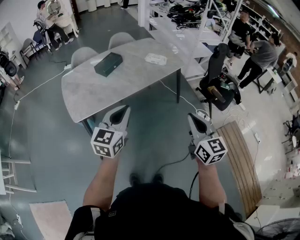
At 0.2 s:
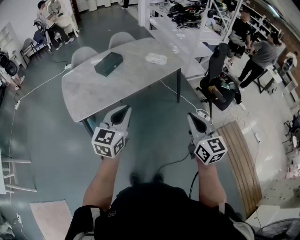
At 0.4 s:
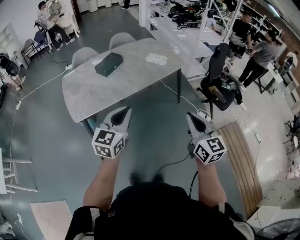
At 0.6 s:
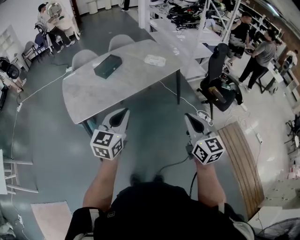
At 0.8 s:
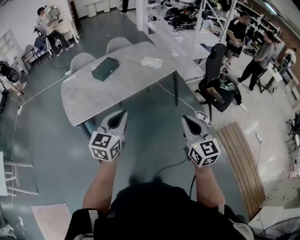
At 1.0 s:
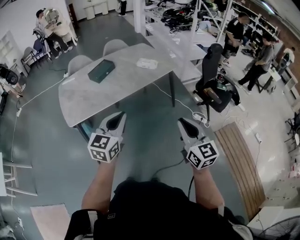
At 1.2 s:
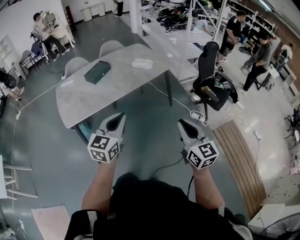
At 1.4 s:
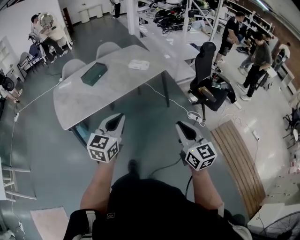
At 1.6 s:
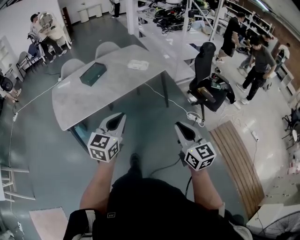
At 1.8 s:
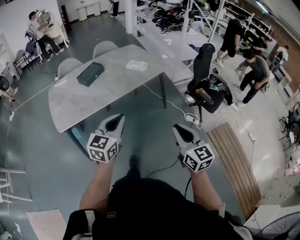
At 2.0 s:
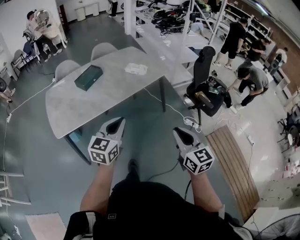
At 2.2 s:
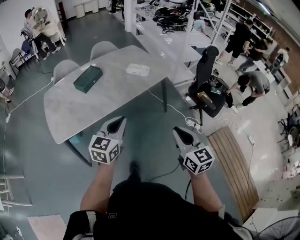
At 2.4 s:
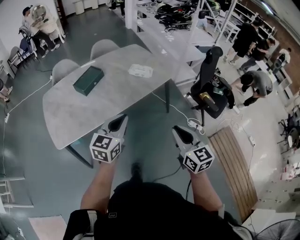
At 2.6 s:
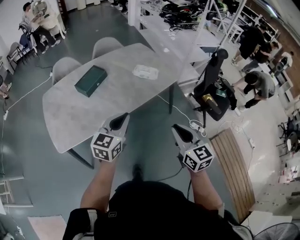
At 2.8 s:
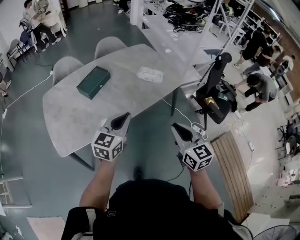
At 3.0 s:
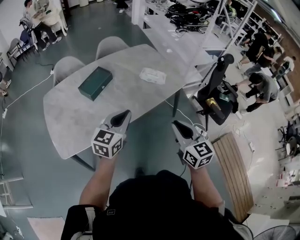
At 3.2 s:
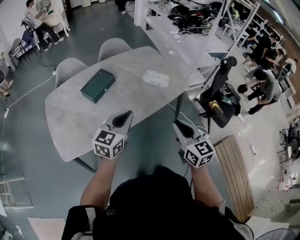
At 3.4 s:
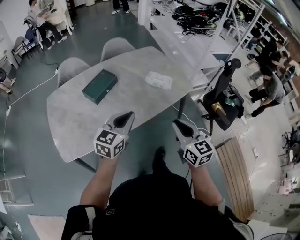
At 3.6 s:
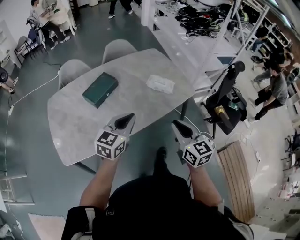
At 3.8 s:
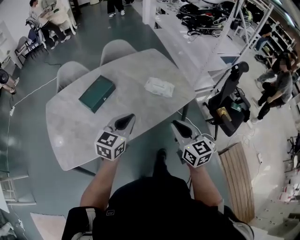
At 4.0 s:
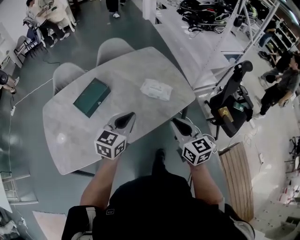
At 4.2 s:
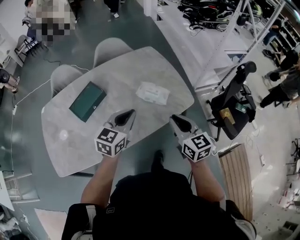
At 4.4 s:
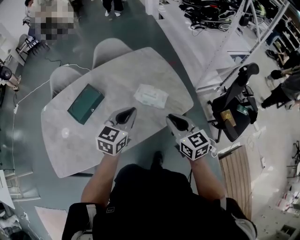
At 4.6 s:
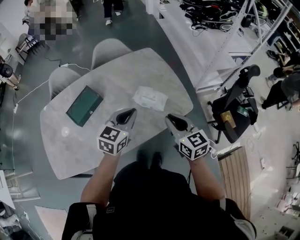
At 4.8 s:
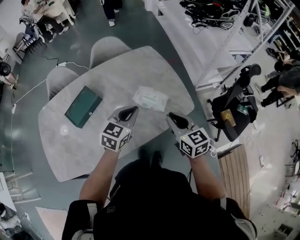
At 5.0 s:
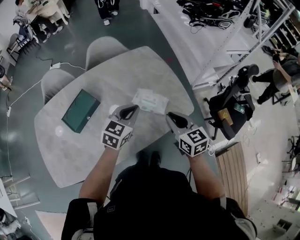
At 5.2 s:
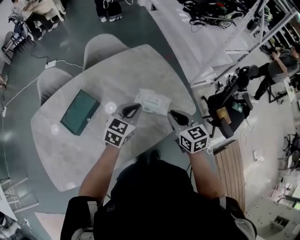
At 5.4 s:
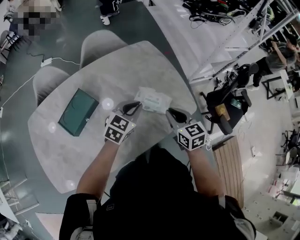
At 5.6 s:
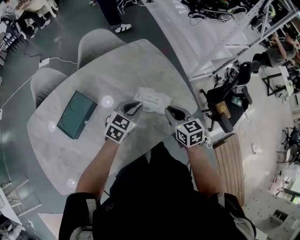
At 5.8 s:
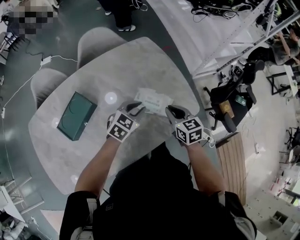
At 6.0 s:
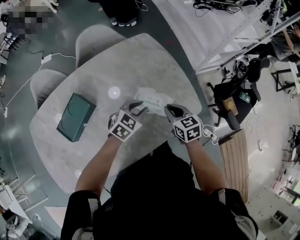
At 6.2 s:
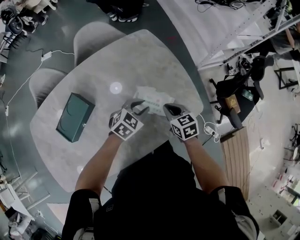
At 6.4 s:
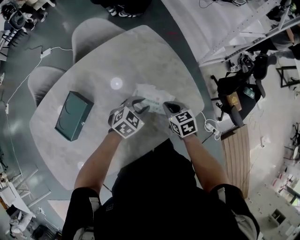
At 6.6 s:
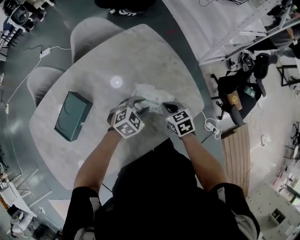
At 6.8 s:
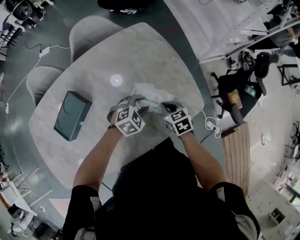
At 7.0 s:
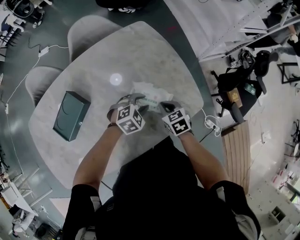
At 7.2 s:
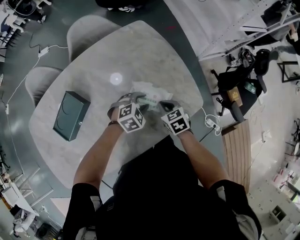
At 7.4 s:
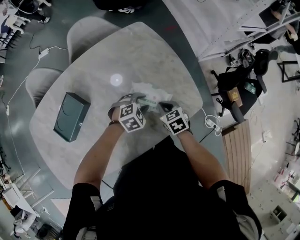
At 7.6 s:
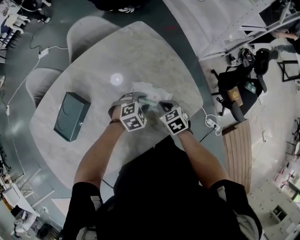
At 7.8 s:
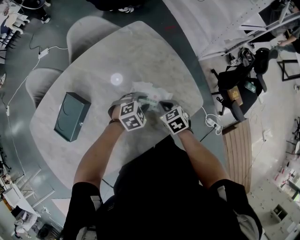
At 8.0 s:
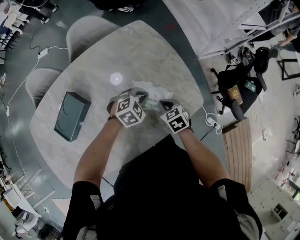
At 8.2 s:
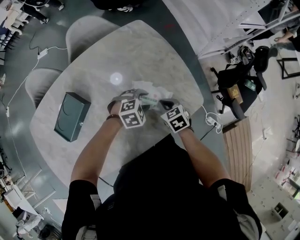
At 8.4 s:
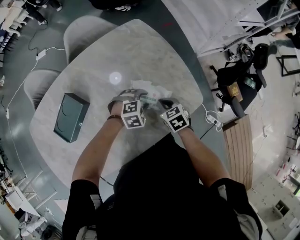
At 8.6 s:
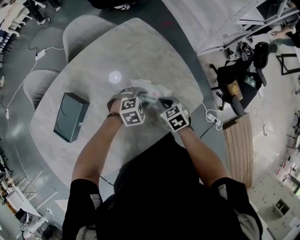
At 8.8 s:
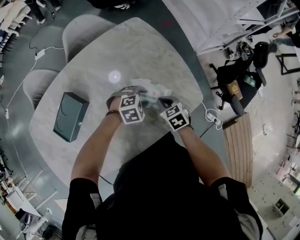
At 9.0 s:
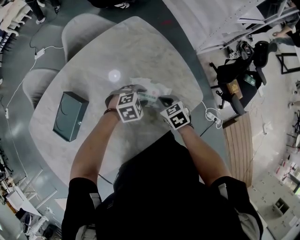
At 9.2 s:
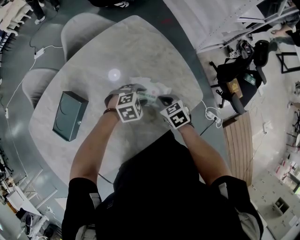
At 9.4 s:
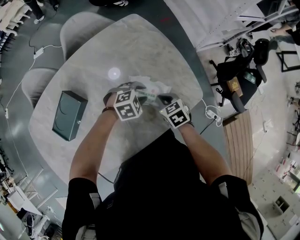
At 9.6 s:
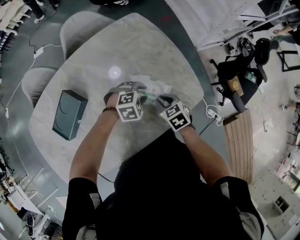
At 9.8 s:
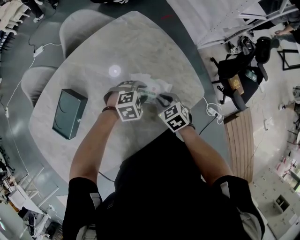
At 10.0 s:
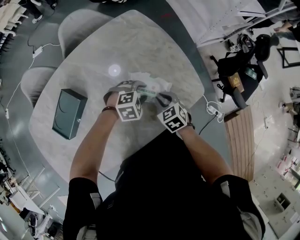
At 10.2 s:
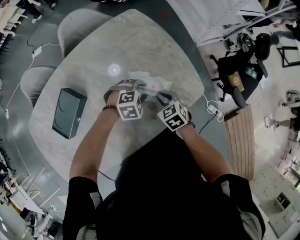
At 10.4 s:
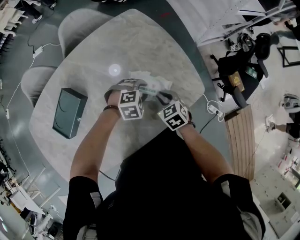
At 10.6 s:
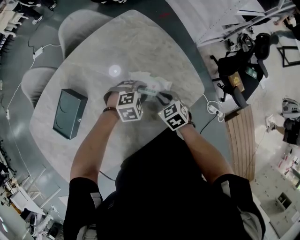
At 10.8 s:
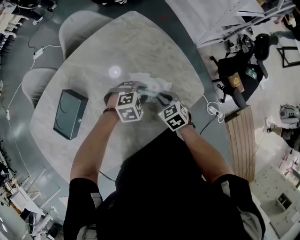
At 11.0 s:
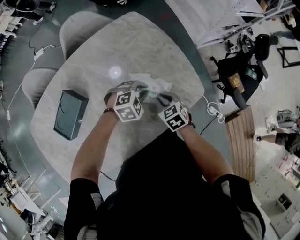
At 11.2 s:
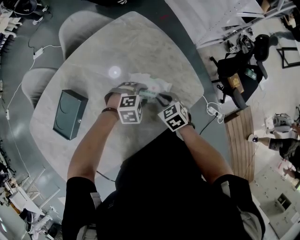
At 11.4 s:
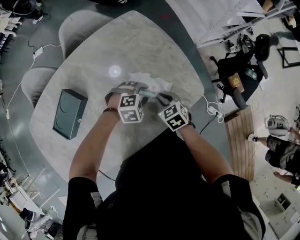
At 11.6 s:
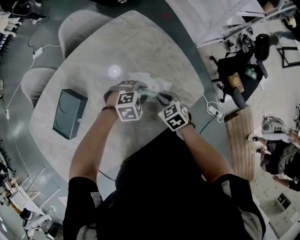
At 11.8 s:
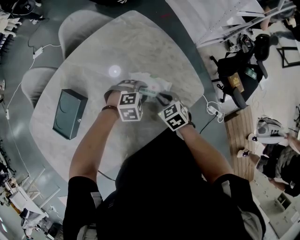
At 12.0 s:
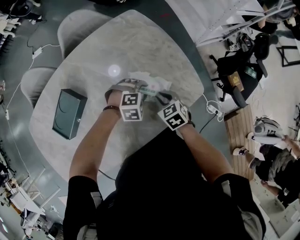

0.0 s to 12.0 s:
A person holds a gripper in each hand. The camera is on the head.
0.0 to 1.6 s: Both grippers move to the right, roughly 15 cm.
1.6 to 3.0 s: The two grippers go roughly 40 cm forward and to the left.
3.0 to 4.4 s: The right gripper travels forward by roughly 35 cm, while the left gripper goes approximately 35 cm forward and to the right.
4.4 to 6.0 s: The two grippers go about 25 cm forward and downward. The left gripper turns by roughly 30 degrees, and opens up, while the right gripper rotates approximately 20 degrees.
6.0 to 7.6 s: The two grippers go approximately 10 cm downward. The left gripper swivels approximately 30 degrees.
7.6 to 9.0 s: The left gripper closes, then reopens.
9.0 to 10.4 s: The grippers stay close to where they were, moving slightly.
10.4 to 12.0 s: The left gripper closes and opens again.

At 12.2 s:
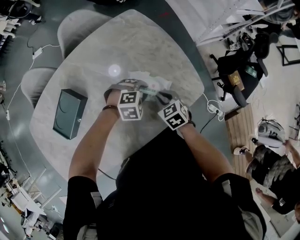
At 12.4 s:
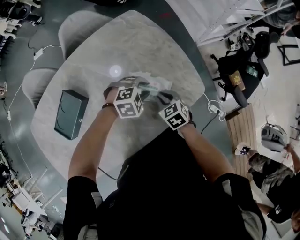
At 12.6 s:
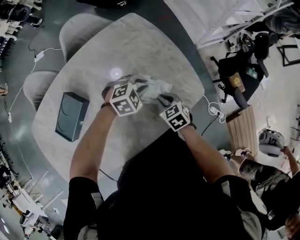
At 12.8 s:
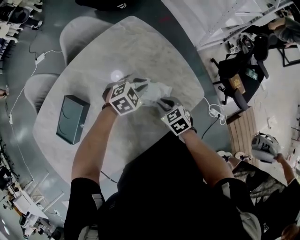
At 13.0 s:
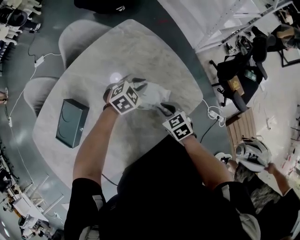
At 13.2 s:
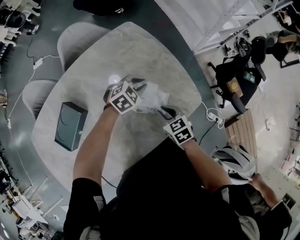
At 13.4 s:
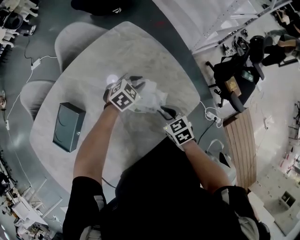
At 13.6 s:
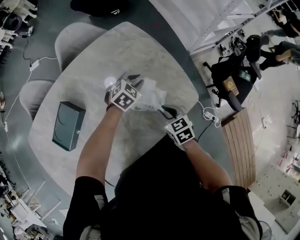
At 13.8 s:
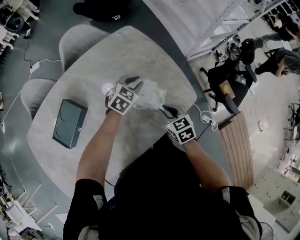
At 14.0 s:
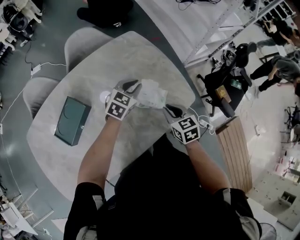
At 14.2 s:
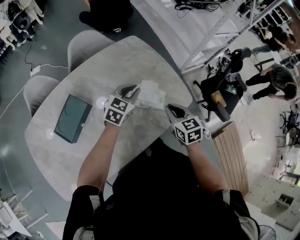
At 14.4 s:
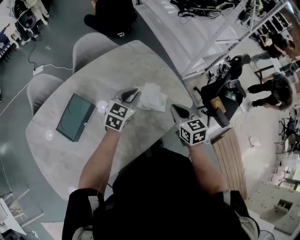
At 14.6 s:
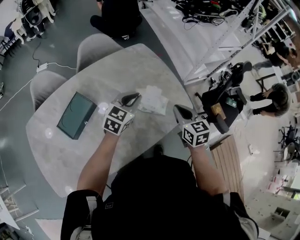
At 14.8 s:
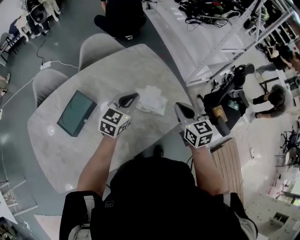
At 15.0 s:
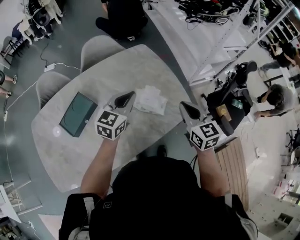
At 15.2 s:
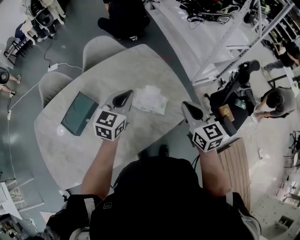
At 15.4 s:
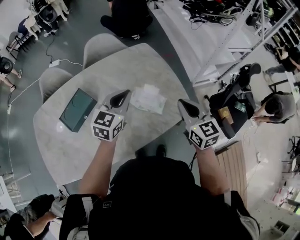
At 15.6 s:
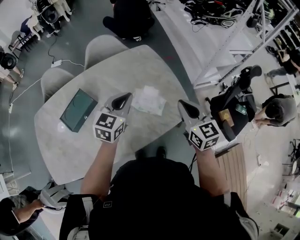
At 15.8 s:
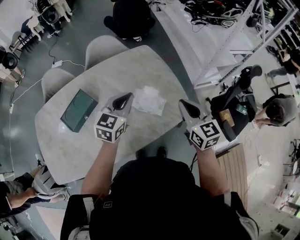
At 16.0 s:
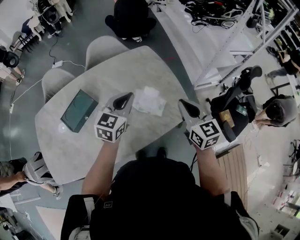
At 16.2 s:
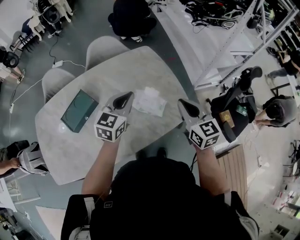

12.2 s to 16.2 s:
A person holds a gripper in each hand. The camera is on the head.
12.2 to 13.6 s: The left gripper travels forward by about 10 cm, and rotates roughly 40 degrees.
13.6 to 14.8 s: The left gripper goes about 25 cm upward and backward, points its fingers about 30 degrees further upward, and closes up; the right gripper goes approximately 20 cm upward, and swivels roughly 20 degrees.
14.8 to 16.2 s: The left gripper shifts by about 5 cm. The right gripper moves upward, roughly 5 cm.

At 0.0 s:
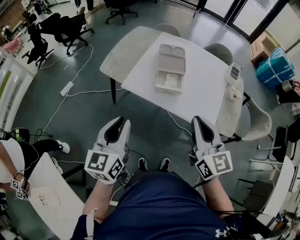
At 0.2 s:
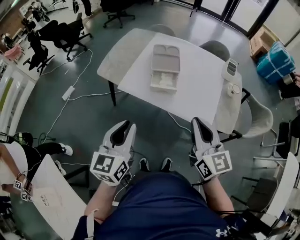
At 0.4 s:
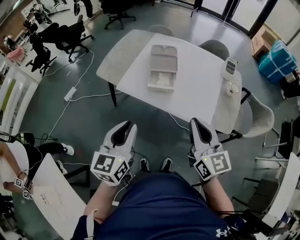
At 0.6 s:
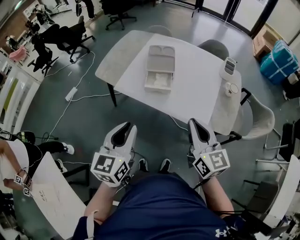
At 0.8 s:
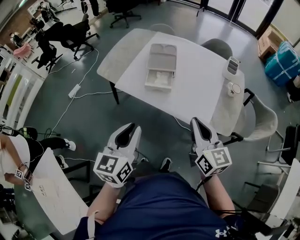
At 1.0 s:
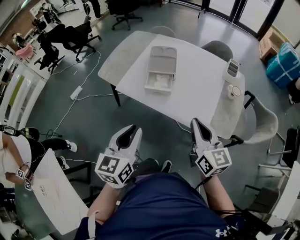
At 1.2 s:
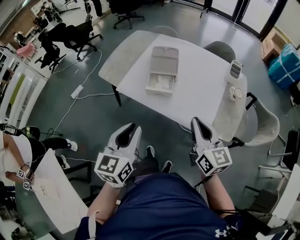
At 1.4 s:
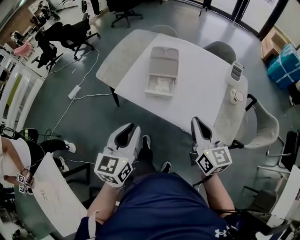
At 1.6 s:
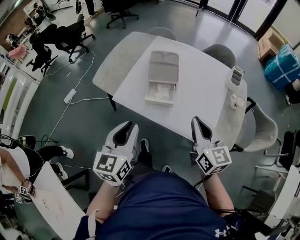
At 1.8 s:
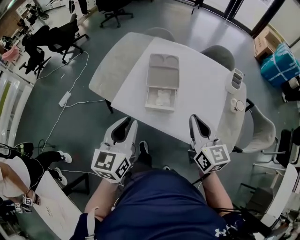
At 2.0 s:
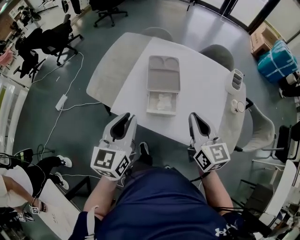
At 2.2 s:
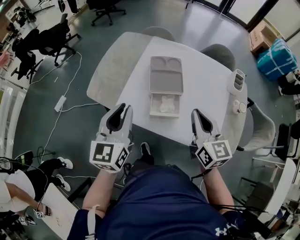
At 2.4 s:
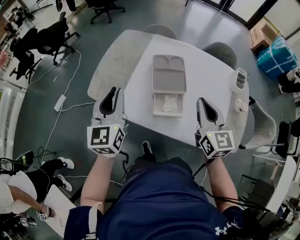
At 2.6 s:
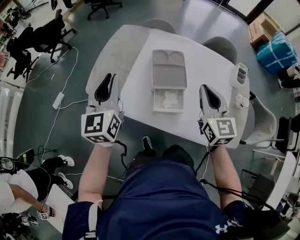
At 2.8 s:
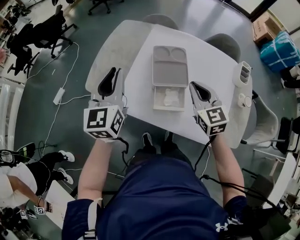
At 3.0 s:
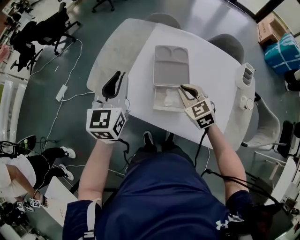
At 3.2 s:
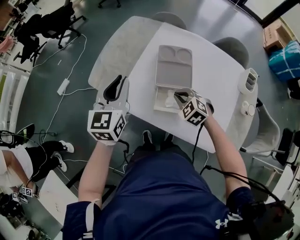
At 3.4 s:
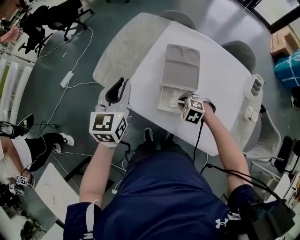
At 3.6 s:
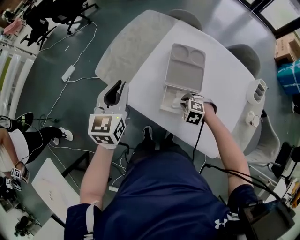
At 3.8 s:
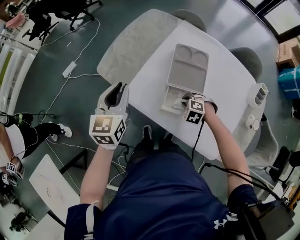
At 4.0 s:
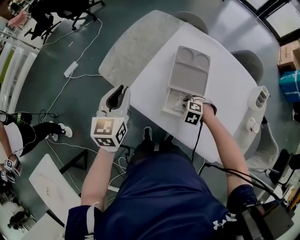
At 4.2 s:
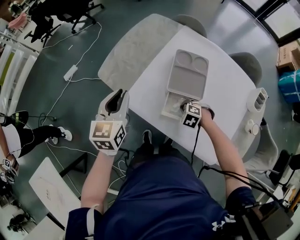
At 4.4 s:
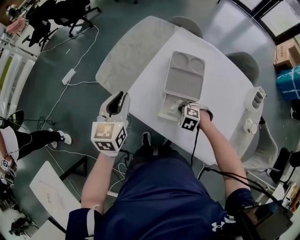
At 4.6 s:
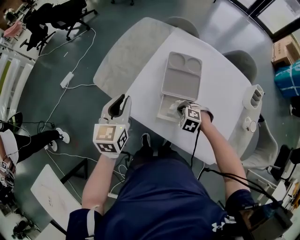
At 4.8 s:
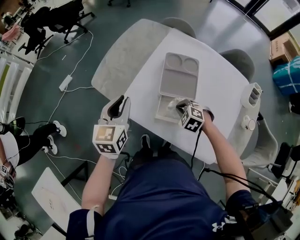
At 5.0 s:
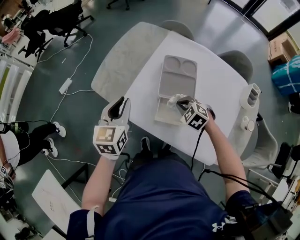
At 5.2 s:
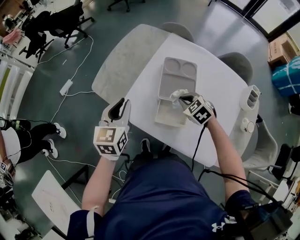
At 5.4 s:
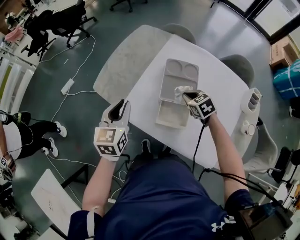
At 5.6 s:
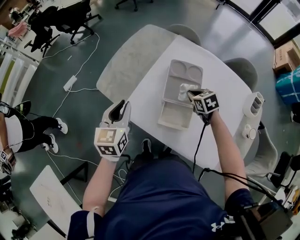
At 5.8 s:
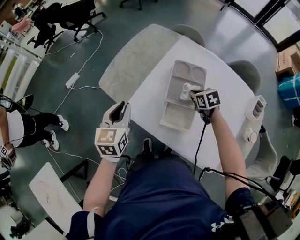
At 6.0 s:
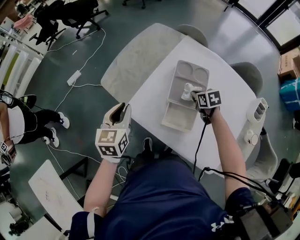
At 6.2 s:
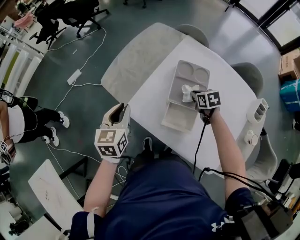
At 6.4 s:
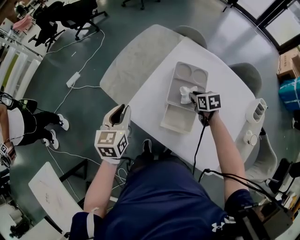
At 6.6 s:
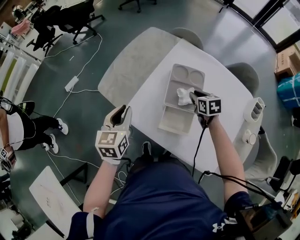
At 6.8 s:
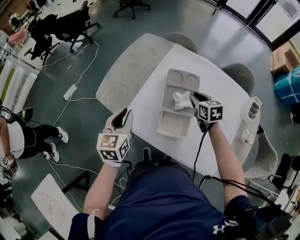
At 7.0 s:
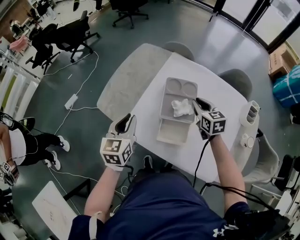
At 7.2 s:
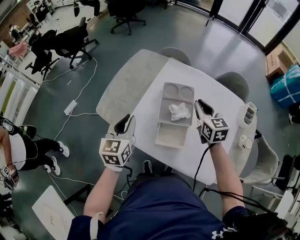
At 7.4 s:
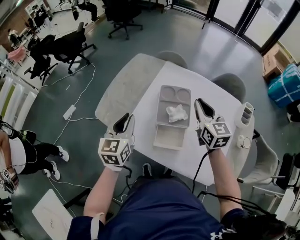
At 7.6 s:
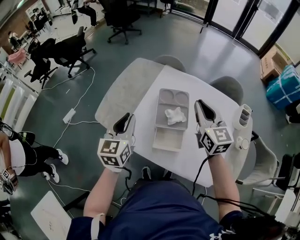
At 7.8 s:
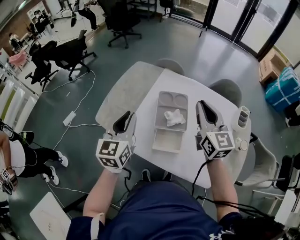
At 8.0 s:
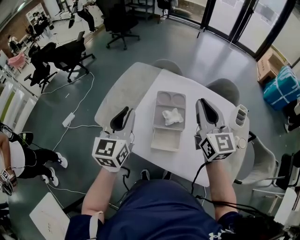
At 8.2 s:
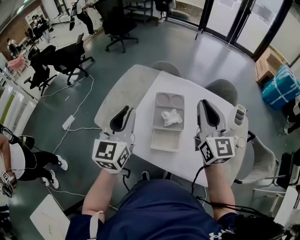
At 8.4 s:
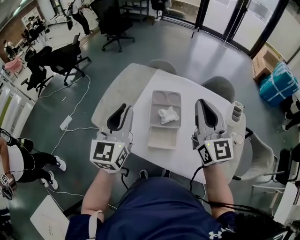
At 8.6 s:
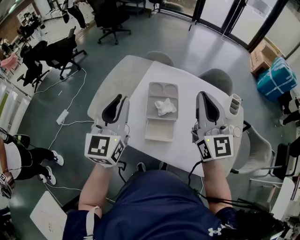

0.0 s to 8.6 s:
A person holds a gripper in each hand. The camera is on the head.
0.0 to 1.4 s: The left gripper is displaced to the right by approximately 15 cm, while the right gripper goes about 15 cm to the right, downward and forward.
1.4 to 2.8 s: The left gripper travels forward and to the left by roughly 35 cm; the right gripper is displaced forward by roughly 25 cm, and changes its angle by roughly 30 degrees.
2.8 to 4.4 s: The right gripper travels downward by roughly 25 cm, and points its fingers some 50 degrees further downward. The left gripper travels downward by approximately 10 cm.
4.4 to 5.8 s: The right gripper ends up approximately 15 cm from where it was, and rotates around the line of its fingers by roughly 50 degrees, clockwise from behind.
5.8 to 7.2 s: The left gripper heads to the right, covering some 5 cm; the right gripper goes approximately 15 cm upward, and tilts its fingers approximately 30 degrees upward.
7.2 to 8.6 s: The right gripper shifts roughly 25 cm upward and backward, and points its fingers roughly 40 degrees further upward. The left gripper shifts roughly 15 cm upward, and changes its angle by approximately 20 degrees.
